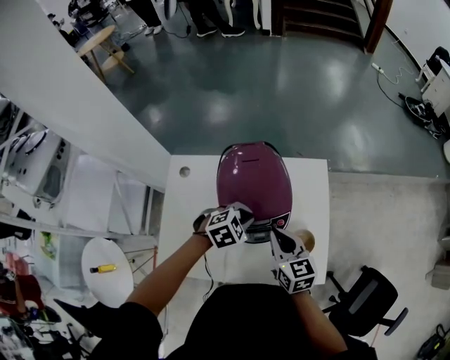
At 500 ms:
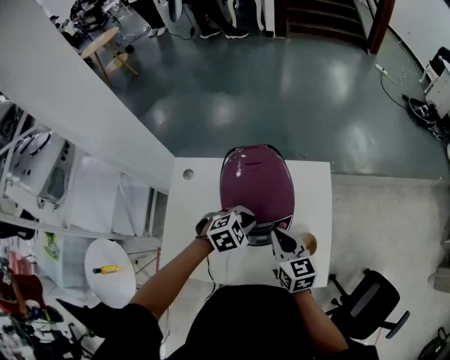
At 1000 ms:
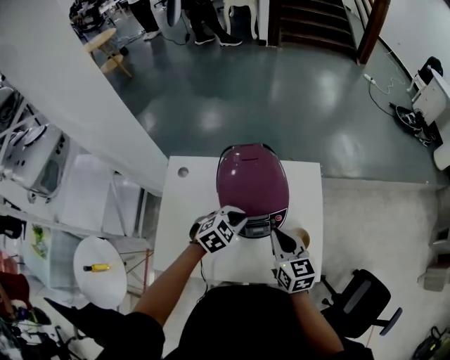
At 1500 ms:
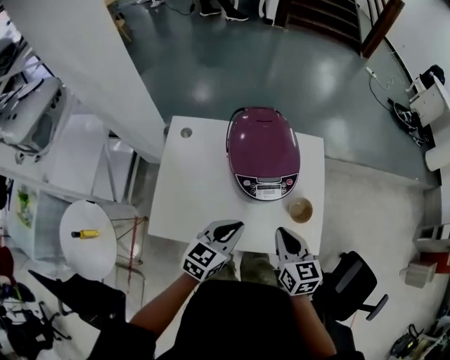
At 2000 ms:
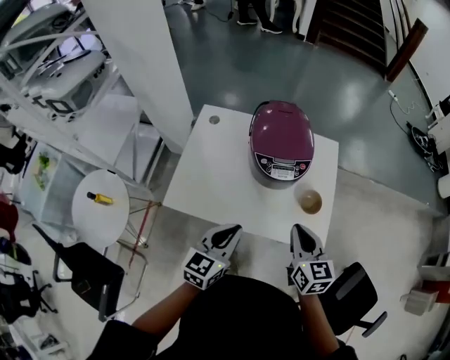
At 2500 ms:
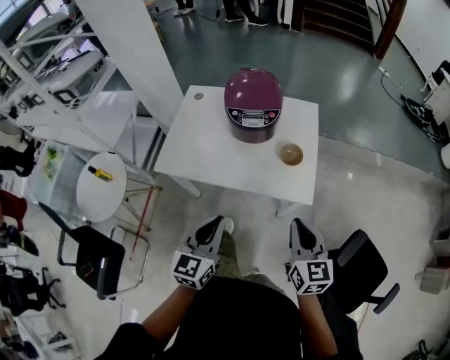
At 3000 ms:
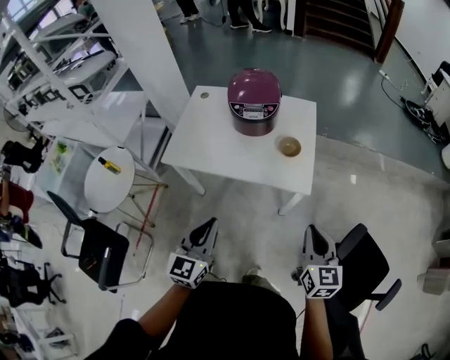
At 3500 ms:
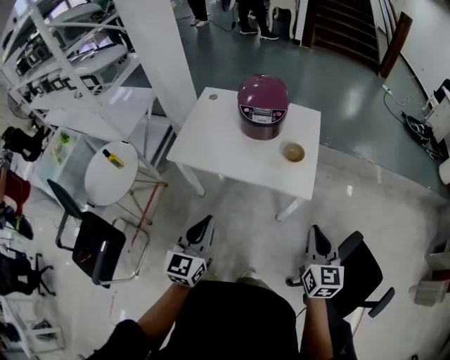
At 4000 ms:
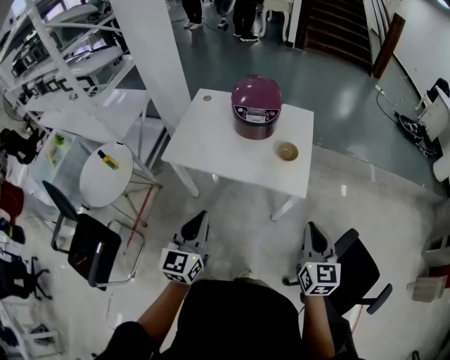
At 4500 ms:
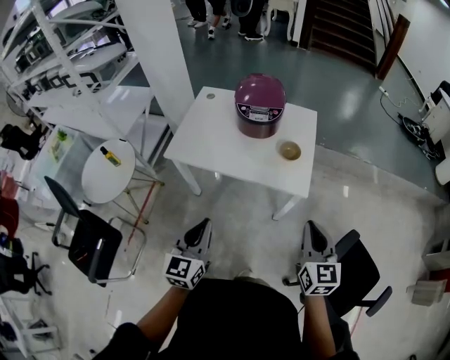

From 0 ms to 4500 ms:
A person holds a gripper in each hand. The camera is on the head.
From 0 ms to 2000 ms: The left gripper travels backward by about 30 cm, and angles its fingers upward, by approximately 40 degrees. Meanwhile the right gripper travels backward by some 20 cm.
From 2000 ms to 4500 ms: The right gripper goes some 30 cm backward and to the right. The left gripper heads backward, covering some 30 cm, and rotates some 20 degrees.

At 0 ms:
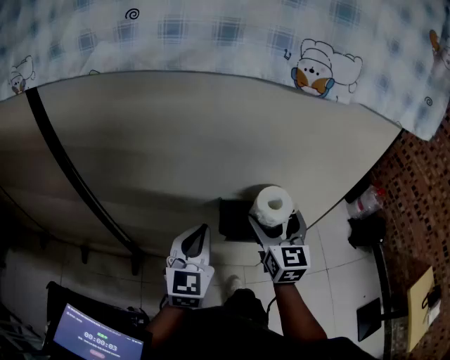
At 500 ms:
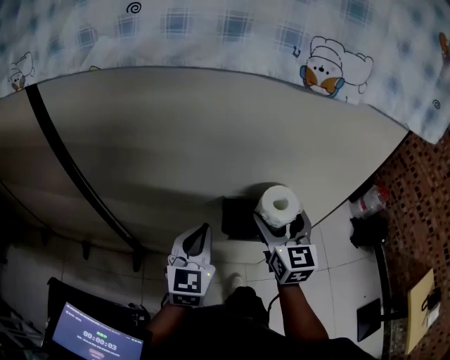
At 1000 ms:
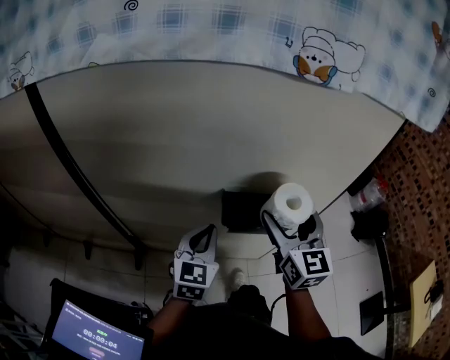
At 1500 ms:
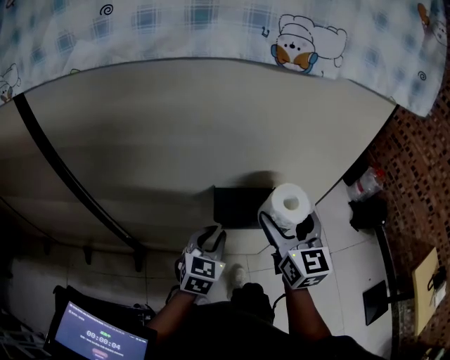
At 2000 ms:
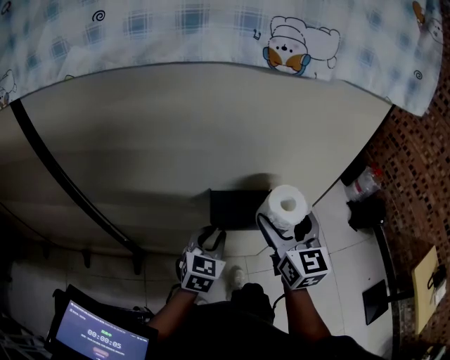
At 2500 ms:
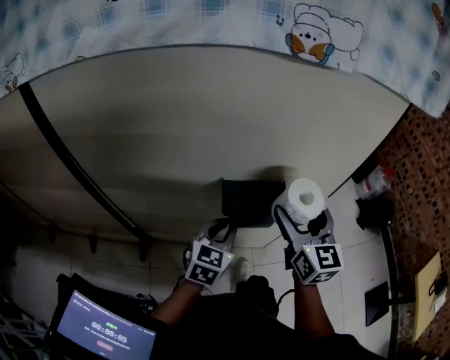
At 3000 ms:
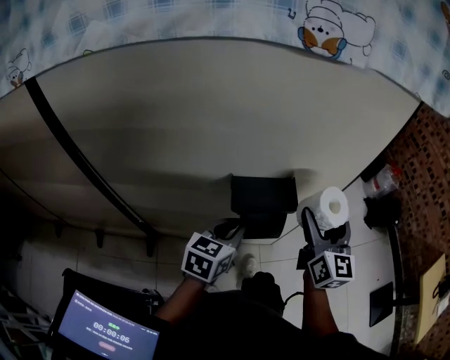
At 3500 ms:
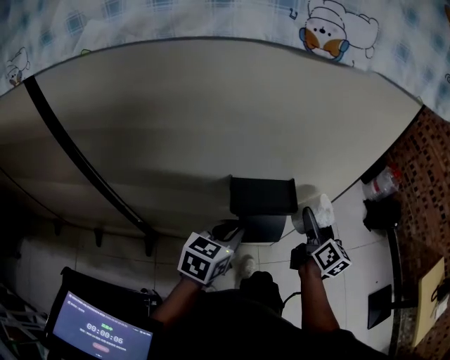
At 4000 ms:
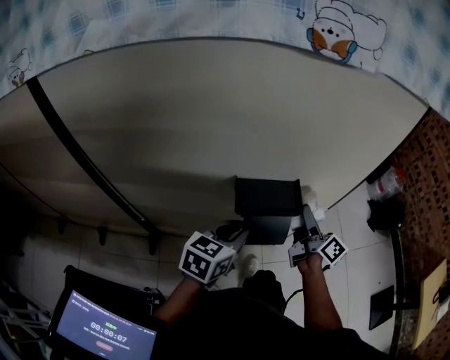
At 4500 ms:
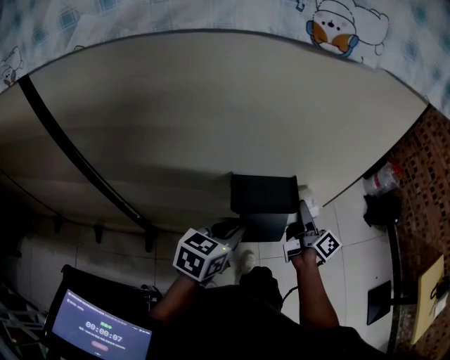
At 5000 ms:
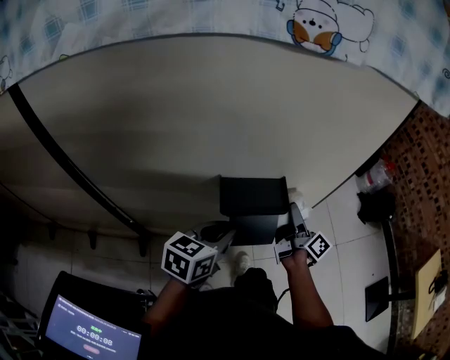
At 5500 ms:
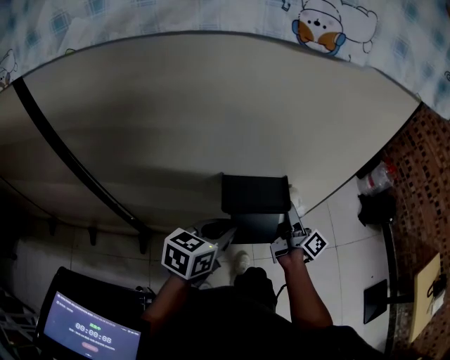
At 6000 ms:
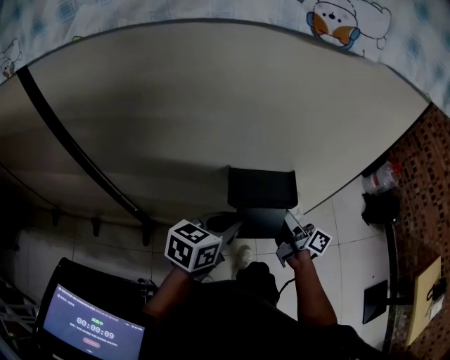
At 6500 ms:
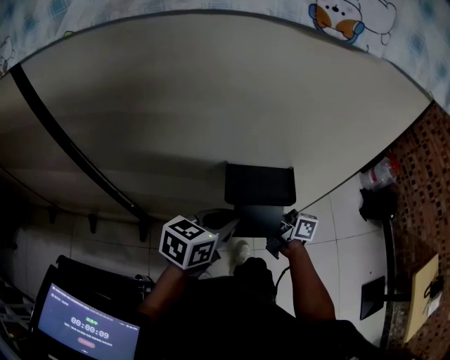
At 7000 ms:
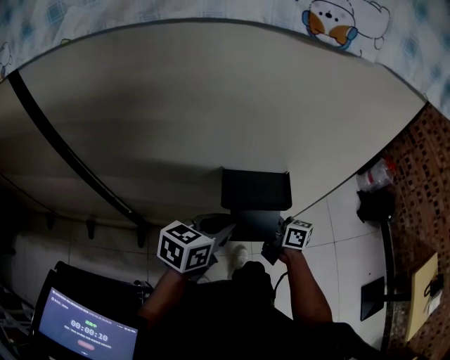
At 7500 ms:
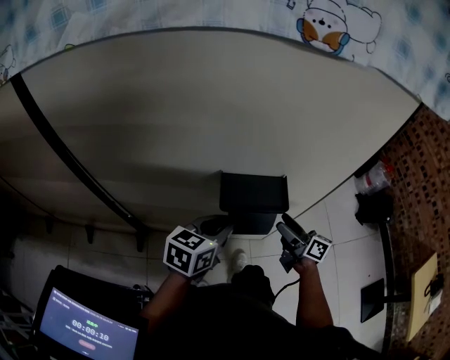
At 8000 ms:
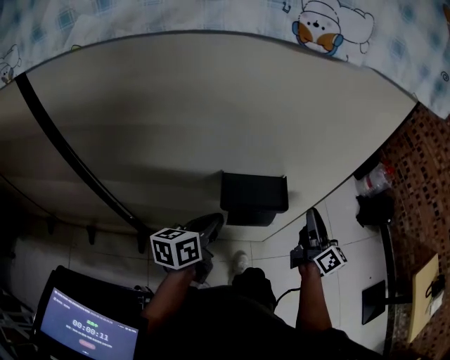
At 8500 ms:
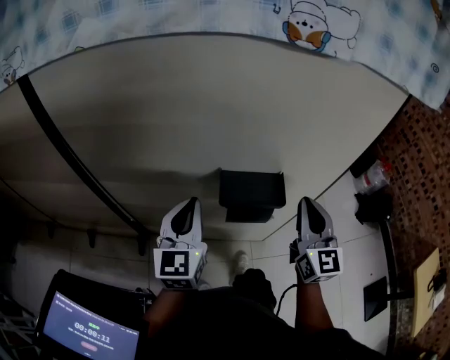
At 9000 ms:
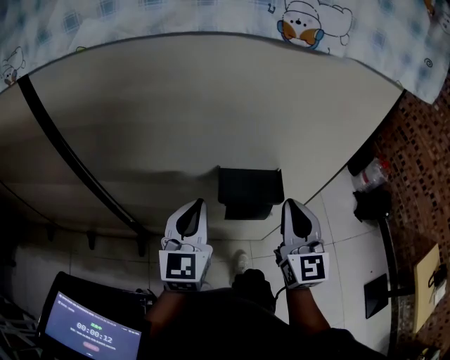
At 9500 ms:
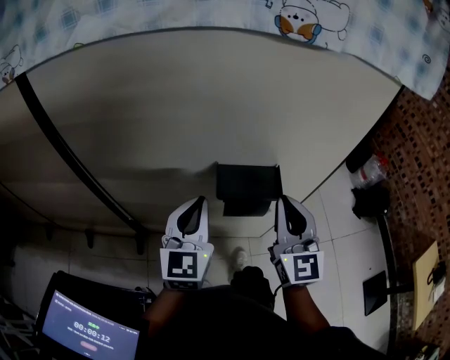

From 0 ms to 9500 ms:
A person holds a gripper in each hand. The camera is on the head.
From 0 ms to 2000 ms: The left gripper moves downward and to the right, some 10 cm, and swivels about 20 degrees, while the right gripper shifts by approximately 5 cm.
From 2000 ms to 4000 ms: The right gripper is displaced downward, forward and to the right by about 15 cm, and twists approximately 60 degrees clockwise, seen from behind; the left gripper swivels roughly 20 degrees.
From 5500 ms to 7500 ms: The right gripper is displaced downward by about 5 cm, moves some 10 cm to the left and comes back, and swivels about 30 degrees.
From 7500 ms to 9500 ms: The left gripper goes about 10 cm upward and to the left, and changes its angle by about 40 degrees, while the right gripper heads upward, covering about 20 cm, rotates around the line of its fingers by about 60 degrees, counterclockwise from behind, and closes.

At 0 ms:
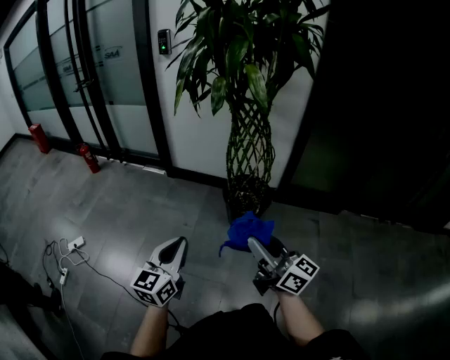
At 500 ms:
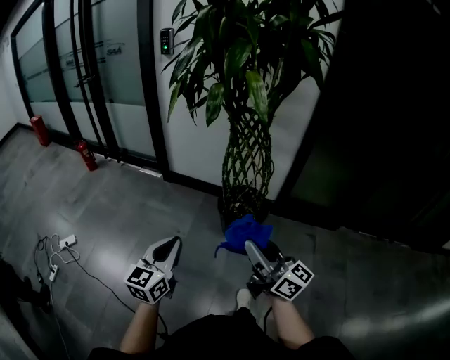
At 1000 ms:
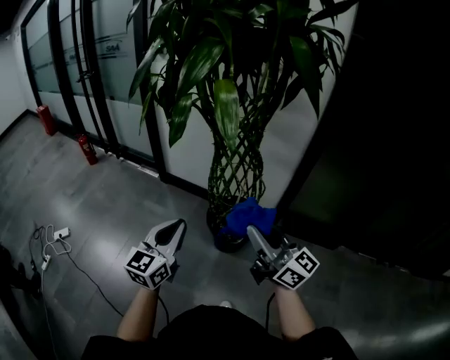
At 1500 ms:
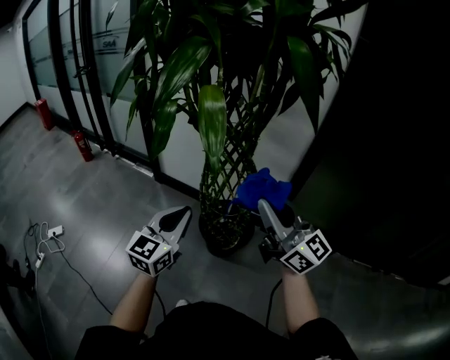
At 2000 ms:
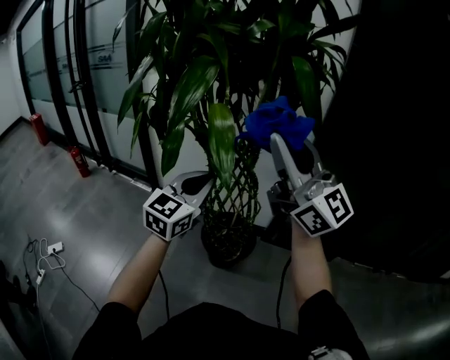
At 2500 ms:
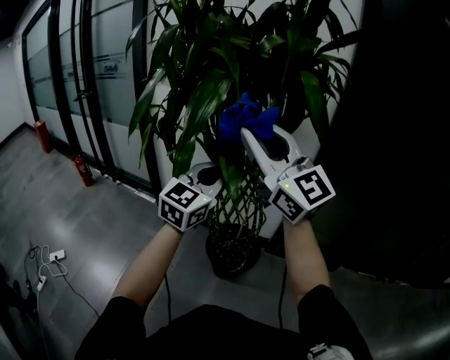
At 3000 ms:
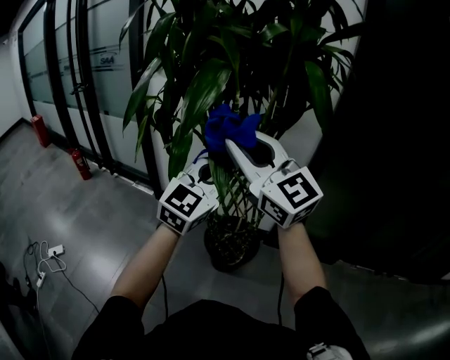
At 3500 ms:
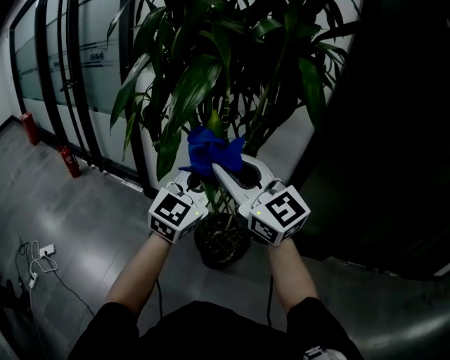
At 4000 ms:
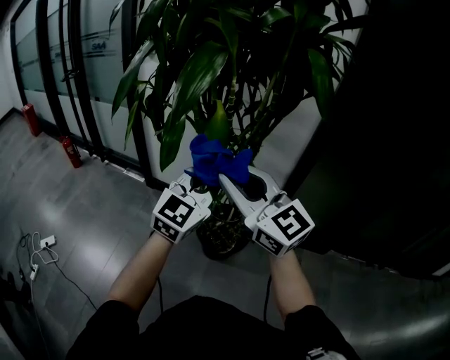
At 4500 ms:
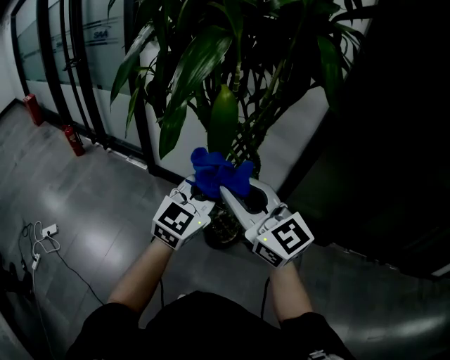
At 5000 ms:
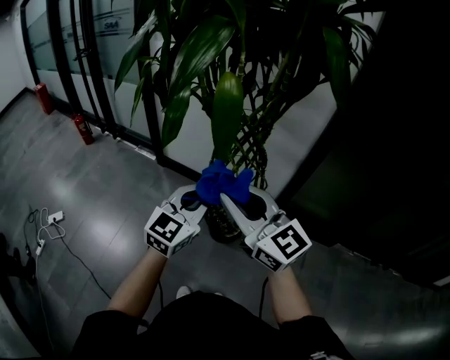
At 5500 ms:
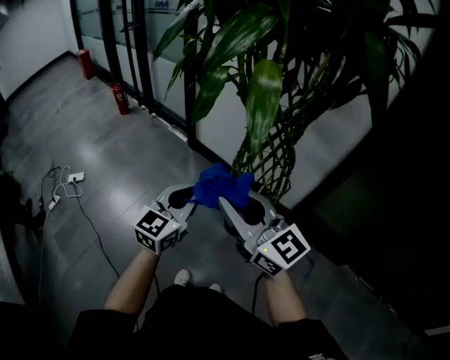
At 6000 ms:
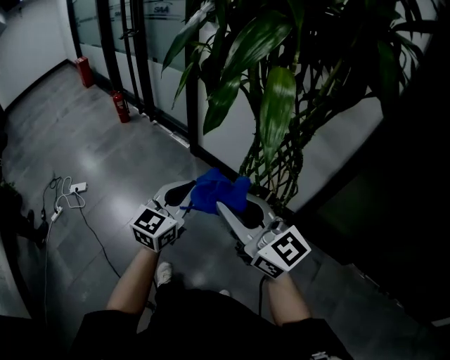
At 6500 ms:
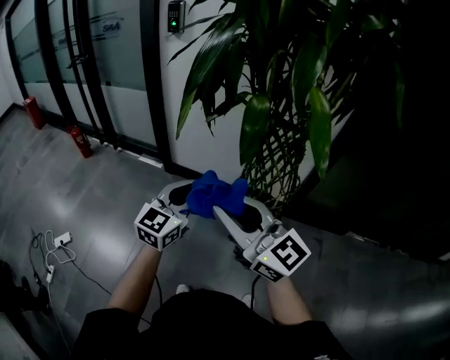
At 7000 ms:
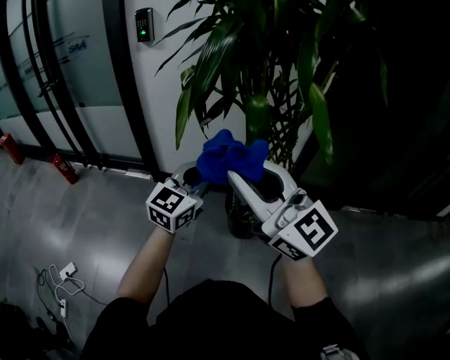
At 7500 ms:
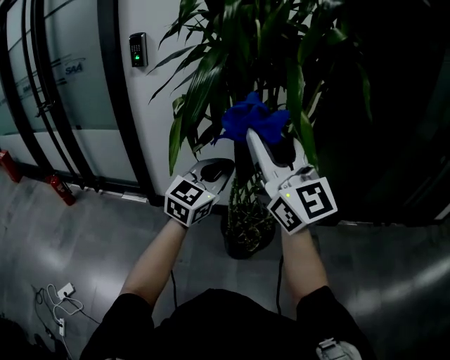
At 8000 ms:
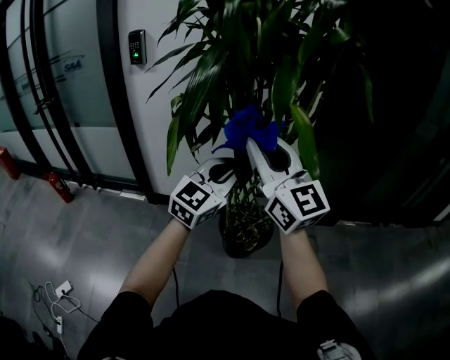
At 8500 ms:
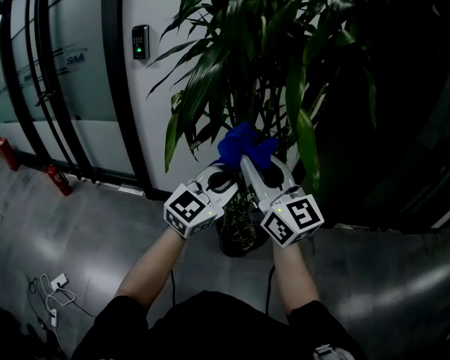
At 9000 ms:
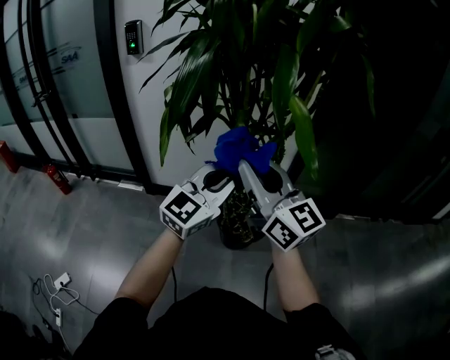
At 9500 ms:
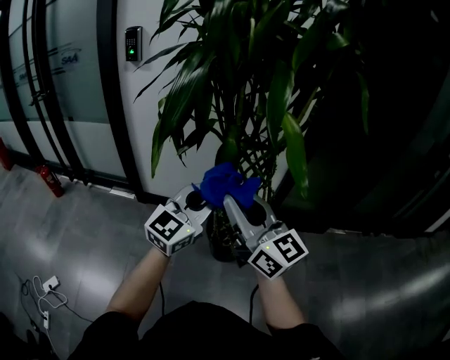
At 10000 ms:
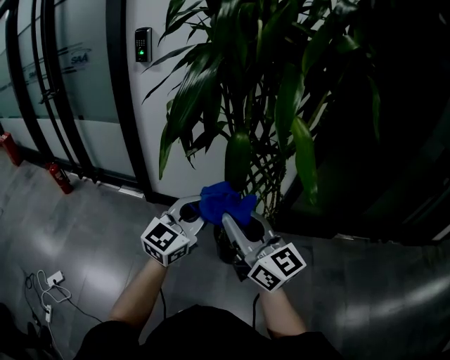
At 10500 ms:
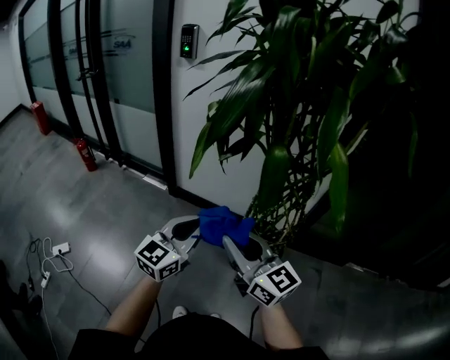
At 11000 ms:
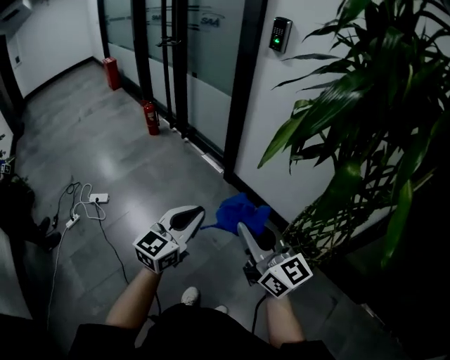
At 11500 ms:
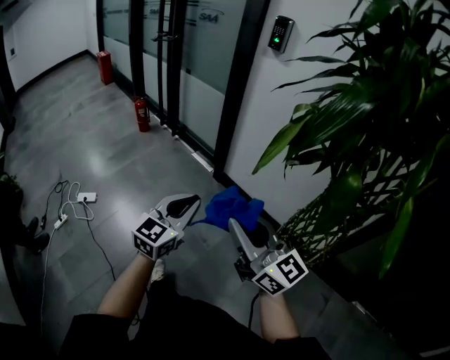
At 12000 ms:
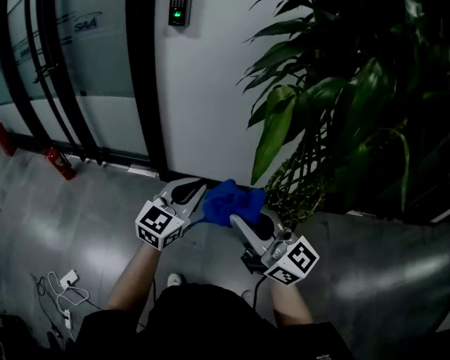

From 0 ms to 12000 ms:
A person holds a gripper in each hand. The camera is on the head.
From 0 ms to 2000 ms: The right gripper is displaced forward, upward and to the right by approximately 50 cm, and swivels some 40 degrees, while the left gripper moves forward, to the right and upward, about 50 cm, and turns by approximately 20 degrees.
From 2000 ms to 4000 ms: The right gripper shifts some 15 cm downward and to the left, and swivels about 30 degrees.
From 4000 ms to 6000 ms: The right gripper goes some 15 cm downward, to the left and backward, and swivels roughly 20 degrees, while the left gripper goes approximately 20 cm to the left and downward, and swivels roughly 30 degrees.
From 6000 ms to 8000 ms: The left gripper changes place by roughly 20 cm, and changes its angle by roughly 50 degrees, while the right gripper ends up some 20 cm from where it was, and turns by about 50 degrees.
From 8000 ms to 10000 ms: The right gripper moves downward and backward, some 15 cm, and changes its angle by approximately 20 degrees. Meanwhile the left gripper goes roughly 5 cm downward.
From 10000 ms to 12000 ms: The right gripper shifts by about 25 cm. The left gripper moves some 30 cm.
